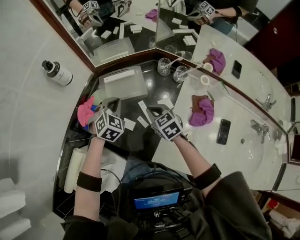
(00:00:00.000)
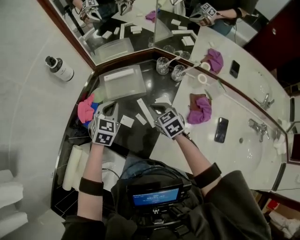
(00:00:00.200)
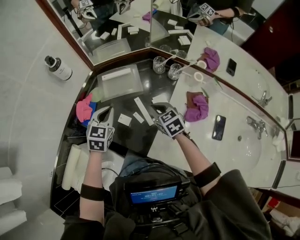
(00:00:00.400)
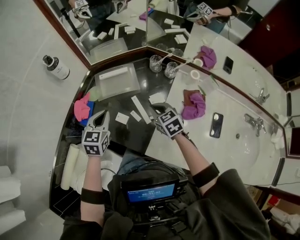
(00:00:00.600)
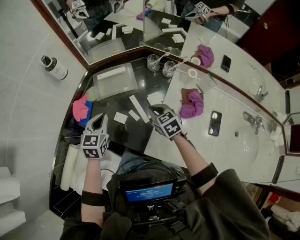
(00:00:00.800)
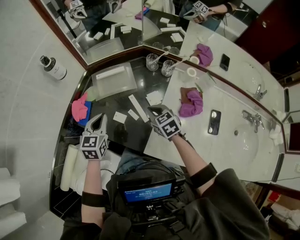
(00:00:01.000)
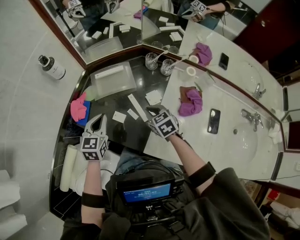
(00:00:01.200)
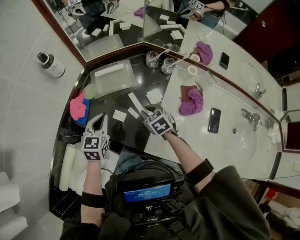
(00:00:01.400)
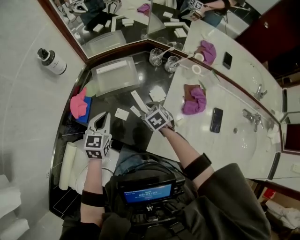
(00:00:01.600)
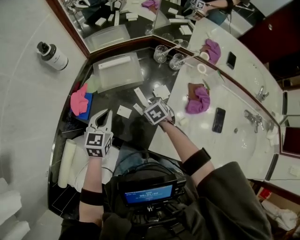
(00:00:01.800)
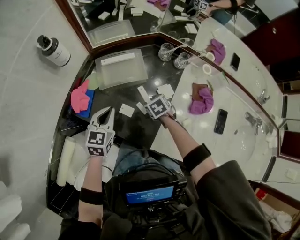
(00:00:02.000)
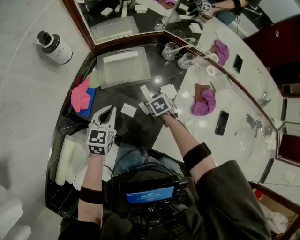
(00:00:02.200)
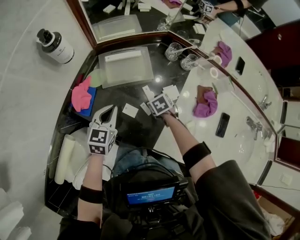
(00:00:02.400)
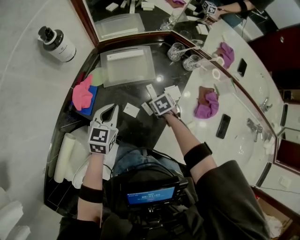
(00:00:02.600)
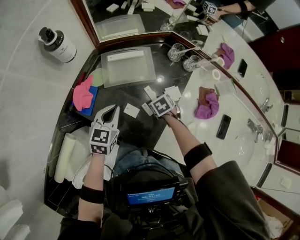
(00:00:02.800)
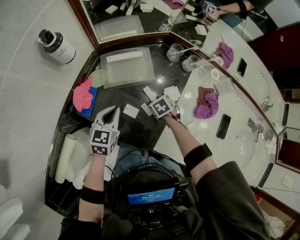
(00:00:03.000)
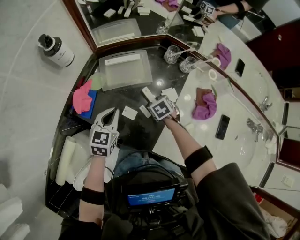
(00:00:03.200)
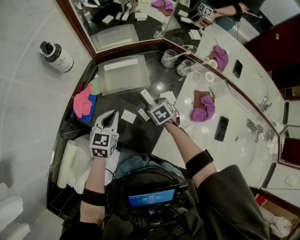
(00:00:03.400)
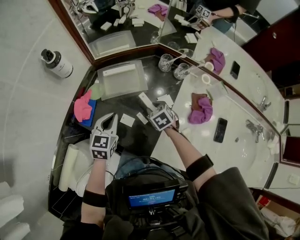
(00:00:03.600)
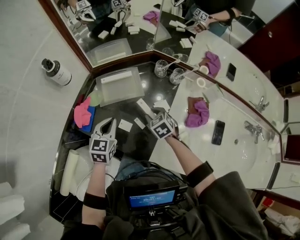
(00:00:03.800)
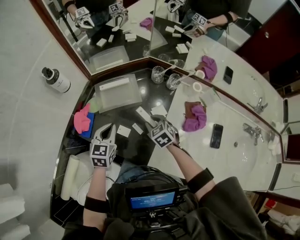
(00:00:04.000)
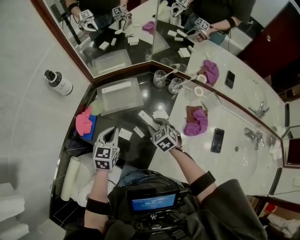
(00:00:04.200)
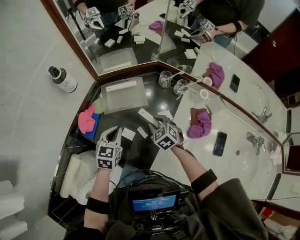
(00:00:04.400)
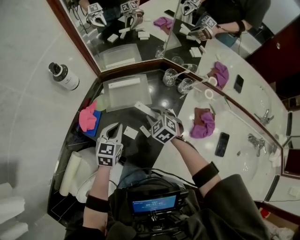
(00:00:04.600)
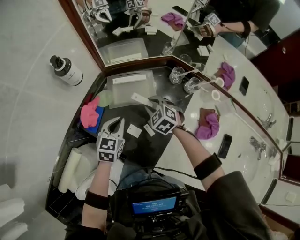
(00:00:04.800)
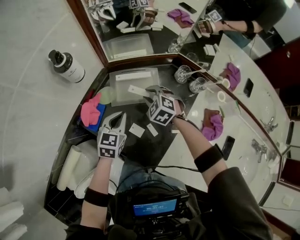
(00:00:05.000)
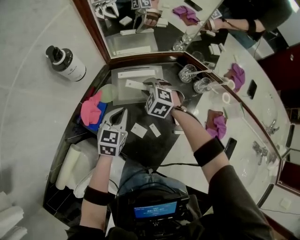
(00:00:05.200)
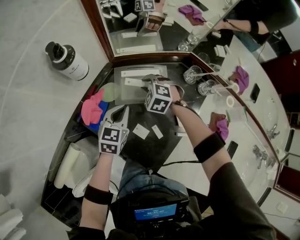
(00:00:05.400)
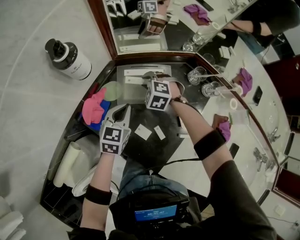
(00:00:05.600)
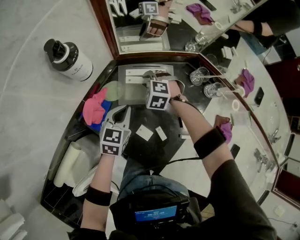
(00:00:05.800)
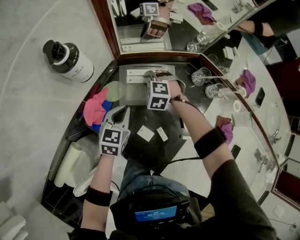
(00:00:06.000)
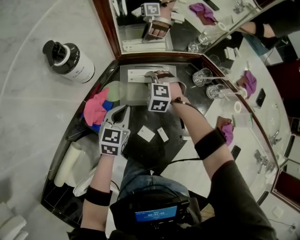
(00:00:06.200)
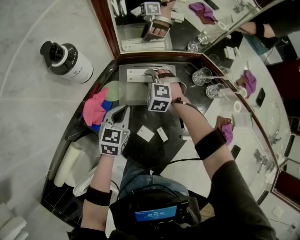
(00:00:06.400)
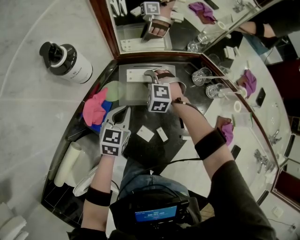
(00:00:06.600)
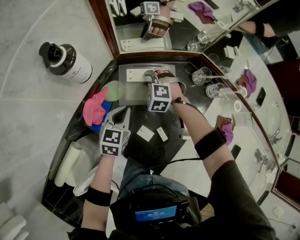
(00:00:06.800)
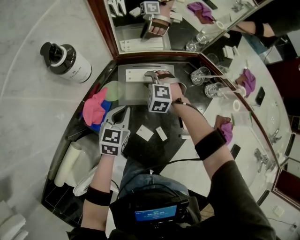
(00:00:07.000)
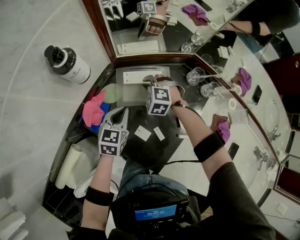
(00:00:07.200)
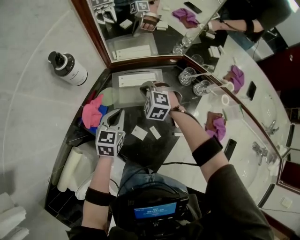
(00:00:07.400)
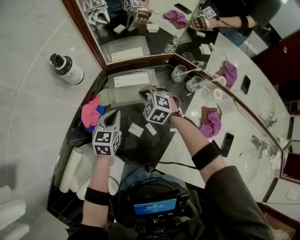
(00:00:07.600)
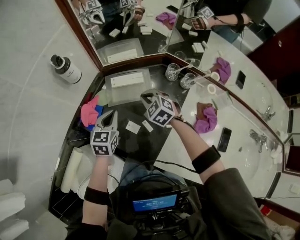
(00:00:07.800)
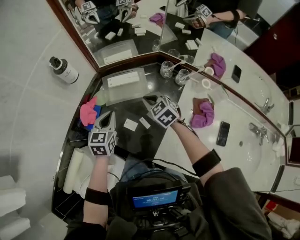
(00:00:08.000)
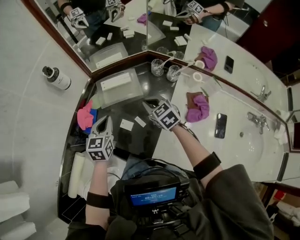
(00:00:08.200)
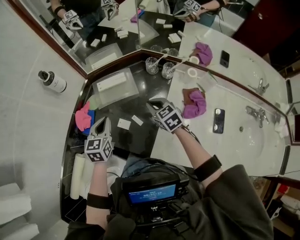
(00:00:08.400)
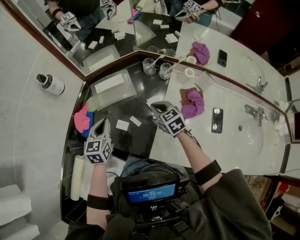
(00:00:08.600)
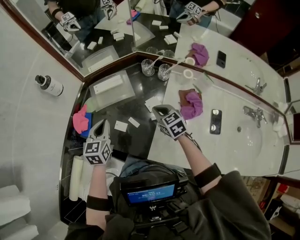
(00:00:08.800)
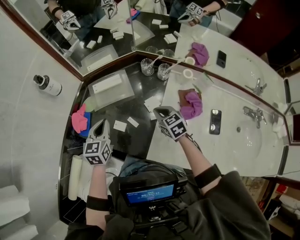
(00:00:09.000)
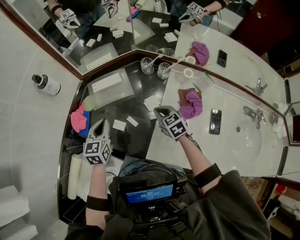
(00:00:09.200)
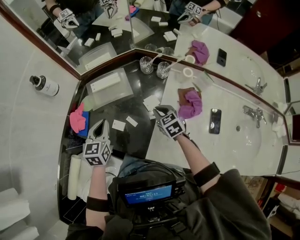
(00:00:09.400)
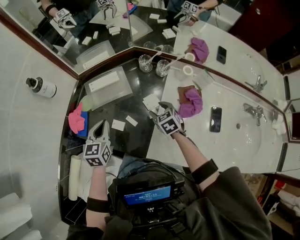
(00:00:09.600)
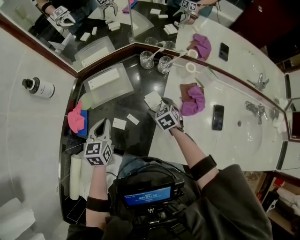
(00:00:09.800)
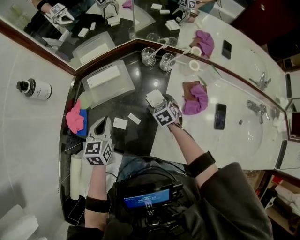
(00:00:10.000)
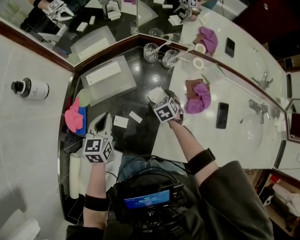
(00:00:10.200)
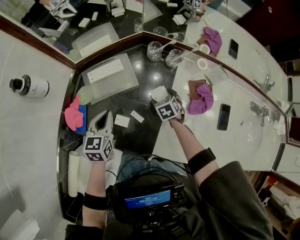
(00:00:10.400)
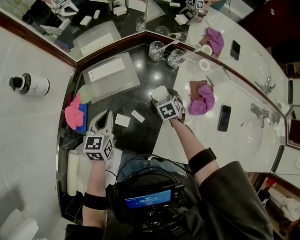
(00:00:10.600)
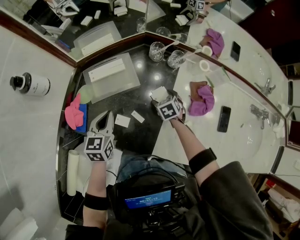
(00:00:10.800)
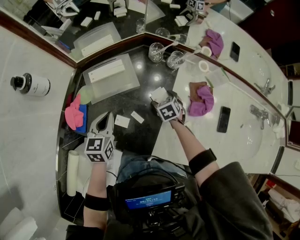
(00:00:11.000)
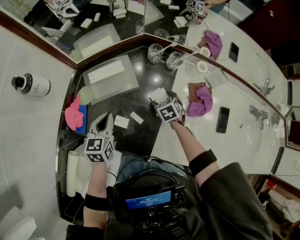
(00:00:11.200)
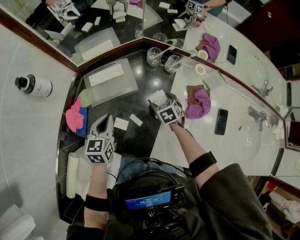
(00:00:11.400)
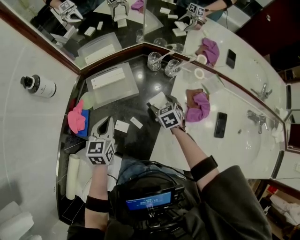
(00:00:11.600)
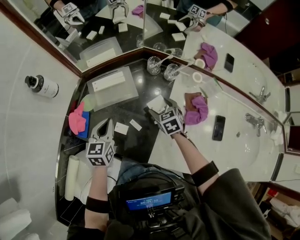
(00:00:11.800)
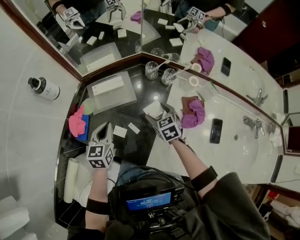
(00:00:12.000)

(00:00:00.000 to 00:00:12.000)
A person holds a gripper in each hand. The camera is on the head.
00:00:00.000 - 00:00:01.600: The right gripper heads downward, covering roughly 10 cm, and opens. Meanwhile the left gripper heads backward and to the left, covering roughly 10 cm, and rotates about 40 degrees.
00:00:01.600 - 00:00:03.000: The left gripper ends up approximately 5 cm from where it was; the right gripper travels downward by about 10 cm.
00:00:03.000 - 00:00:04.400: The right gripper moves upward, roughly 10 cm, and swivels about 30 degrees.
00:00:04.400 - 00:00:06.000: The left gripper moves forward, downward and to the left, approximately 15 cm. The right gripper moves forward and to the left, about 25 cm, and rotates around the line of its fingers by roughly 50 degrees, counterclockwise from behind.
00:00:06.000 - 00:00:07.600: The right gripper goes roughly 15 cm upward and backward, and rotates roughly 20 degrees. The left gripper heads upward, covering some 5 cm.
00:00:07.600 - 00:00:09.000: The right gripper goes about 25 cm backward and to the right, and rolls clockwise, seen from behind, by about 50 degrees. The left gripper travels backward and upward by approximately 10 cm.
00:00:09.000 - 00:00:10.400: The left gripper shifts approximately 5 cm downward. The right gripper is displaced downward and forward by roughly 15 cm, changes its angle by roughly 30 degrees, and opens up.
00:00:10.400 - 00:00:12.000: The right gripper travels upward by roughly 15 cm.

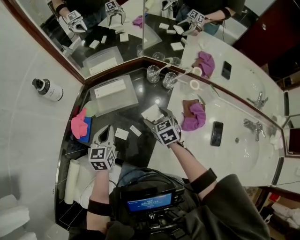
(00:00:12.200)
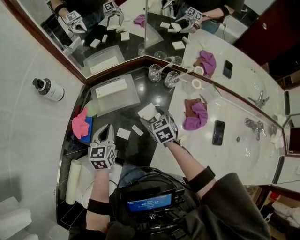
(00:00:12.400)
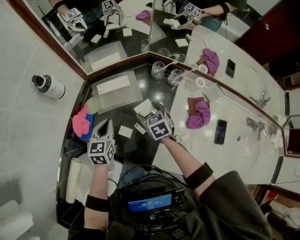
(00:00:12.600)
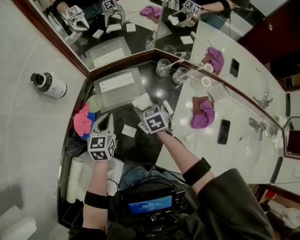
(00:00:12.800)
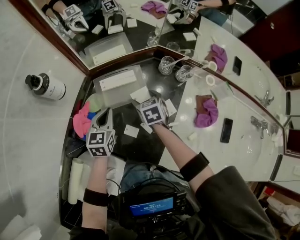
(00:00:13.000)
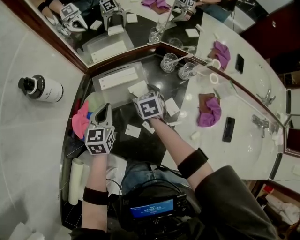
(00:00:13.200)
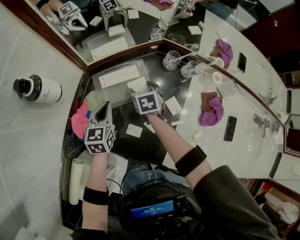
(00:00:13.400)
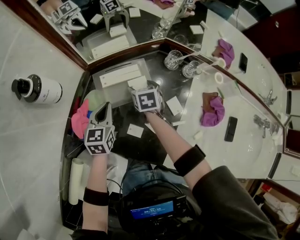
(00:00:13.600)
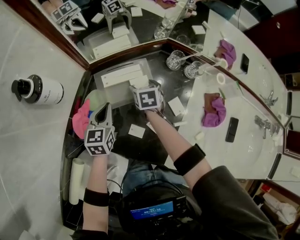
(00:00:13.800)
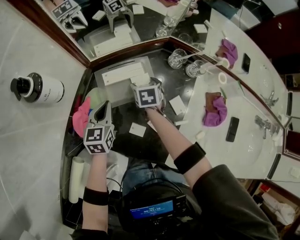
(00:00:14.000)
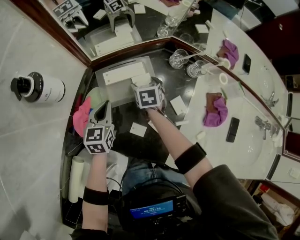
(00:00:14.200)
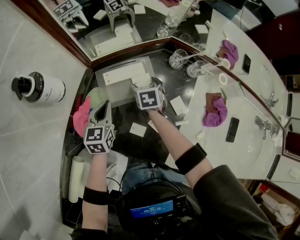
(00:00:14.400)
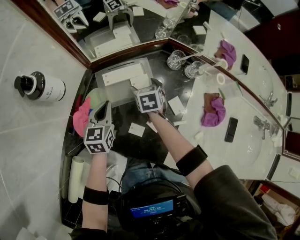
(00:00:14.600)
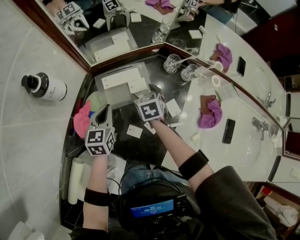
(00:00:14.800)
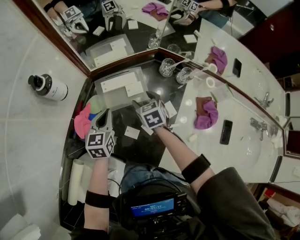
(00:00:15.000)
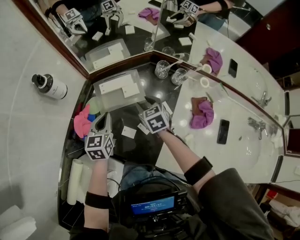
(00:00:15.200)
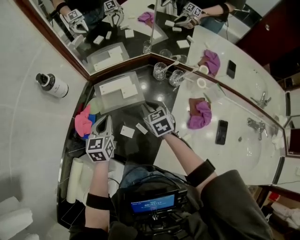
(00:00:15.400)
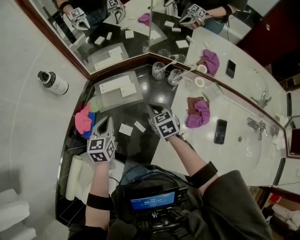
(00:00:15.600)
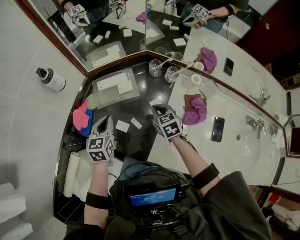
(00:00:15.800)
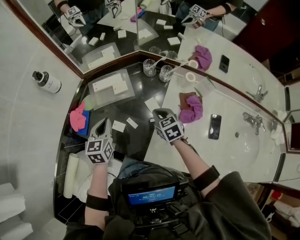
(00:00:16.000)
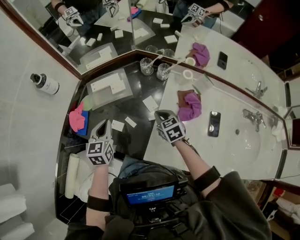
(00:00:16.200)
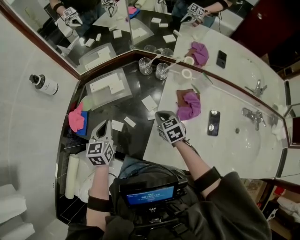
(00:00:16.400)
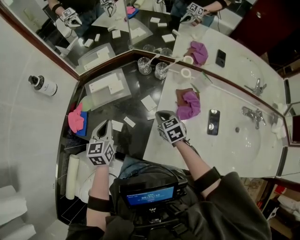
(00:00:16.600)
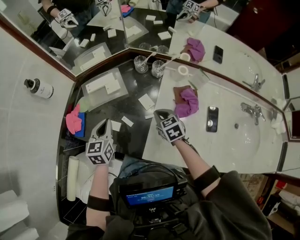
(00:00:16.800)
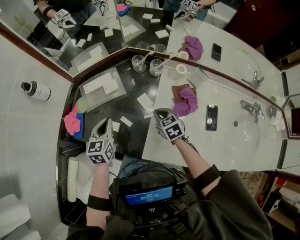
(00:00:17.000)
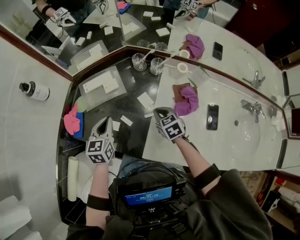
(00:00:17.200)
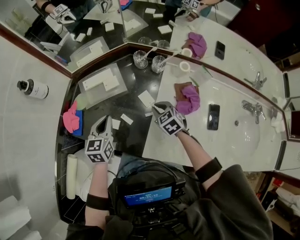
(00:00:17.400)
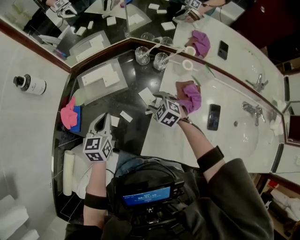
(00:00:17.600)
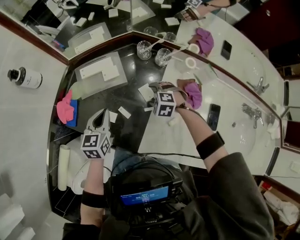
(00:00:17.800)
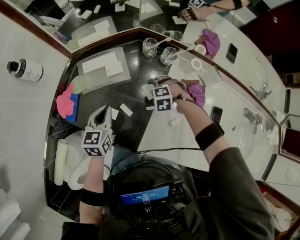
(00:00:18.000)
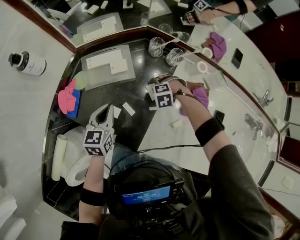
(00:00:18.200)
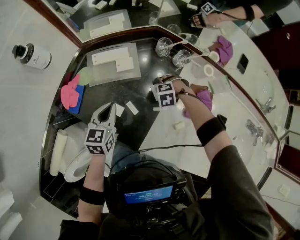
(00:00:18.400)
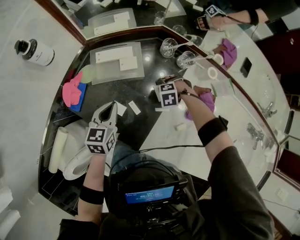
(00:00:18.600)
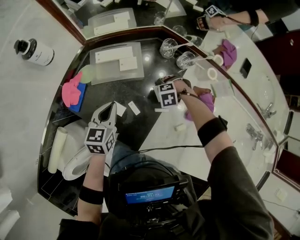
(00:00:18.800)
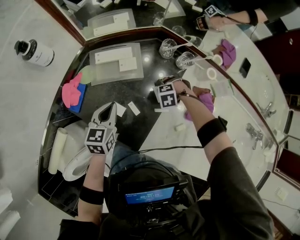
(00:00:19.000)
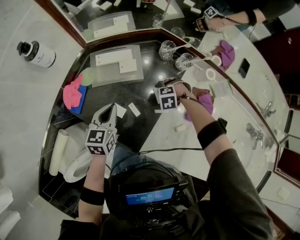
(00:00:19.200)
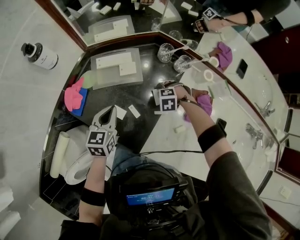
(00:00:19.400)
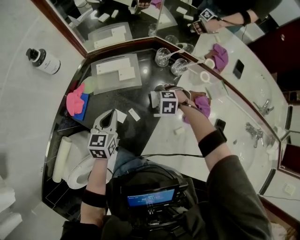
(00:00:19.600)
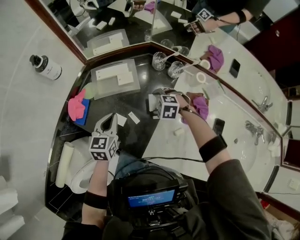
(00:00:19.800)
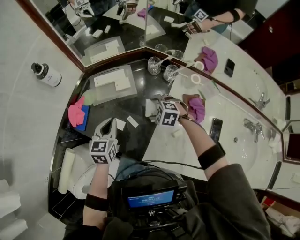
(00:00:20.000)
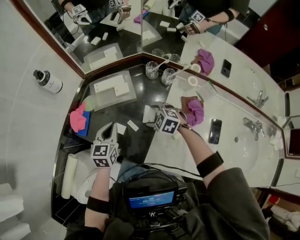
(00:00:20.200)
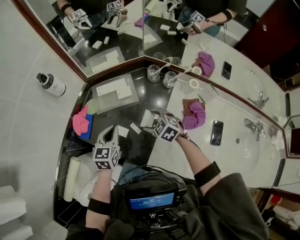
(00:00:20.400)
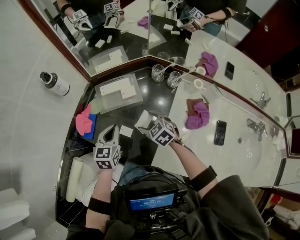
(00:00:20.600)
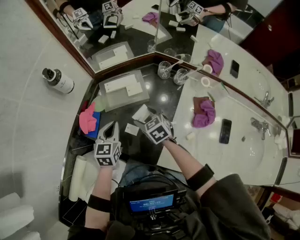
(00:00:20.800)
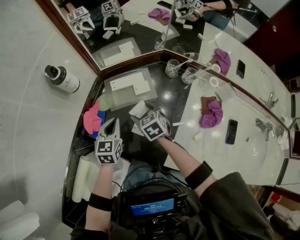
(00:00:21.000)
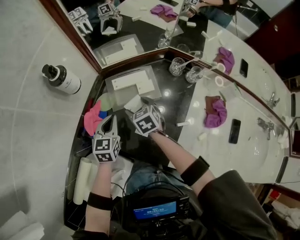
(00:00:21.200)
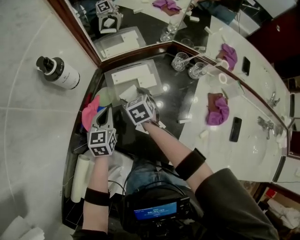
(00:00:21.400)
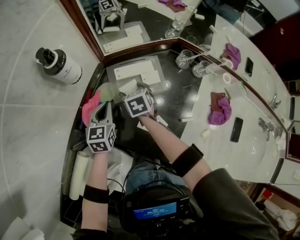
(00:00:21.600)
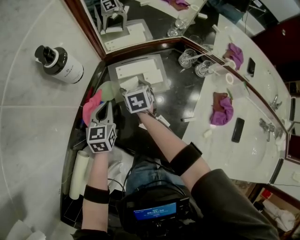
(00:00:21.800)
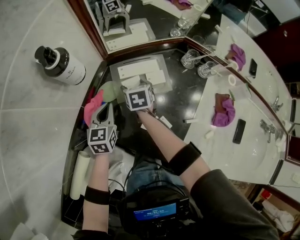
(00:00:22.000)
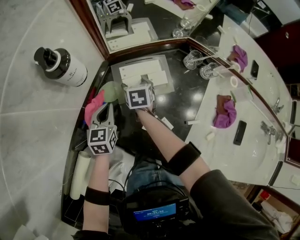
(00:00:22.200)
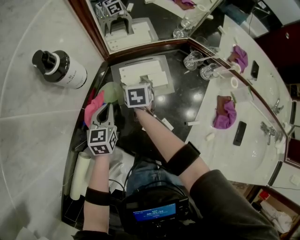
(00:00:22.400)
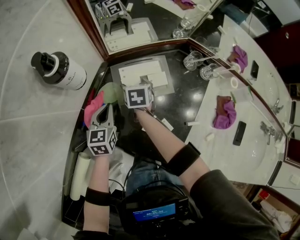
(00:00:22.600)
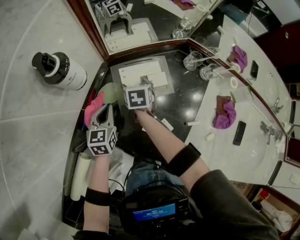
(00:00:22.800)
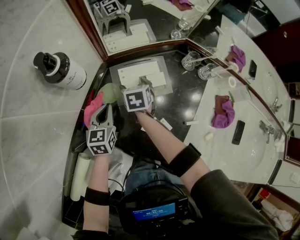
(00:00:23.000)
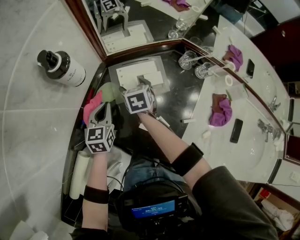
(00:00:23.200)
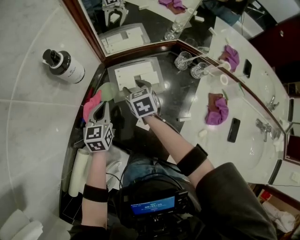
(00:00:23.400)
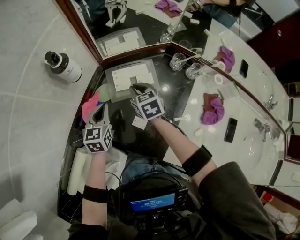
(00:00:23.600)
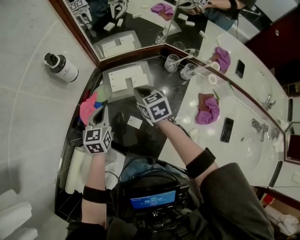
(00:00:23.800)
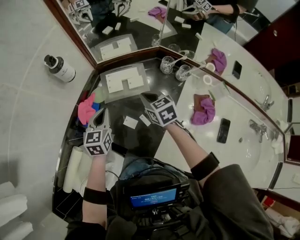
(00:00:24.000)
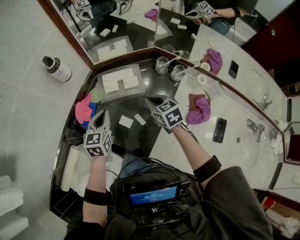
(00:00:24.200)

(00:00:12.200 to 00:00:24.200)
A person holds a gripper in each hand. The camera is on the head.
00:00:12.200 - 00:00:13.800: Both grippers move forward, to the left and downward, some 20 cm.
00:00:13.800 - 00:00:15.200: The left gripper shifts about 5 cm upward. Meanwhile the right gripper heads upward and backward, covering about 10 cm, and closes its fingers.
00:00:15.200 - 00:00:16.600: The right gripper travels backward and to the right by approximately 20 cm, and closes; the left gripper shifts some 10 cm backward and to the right.
00:00:16.600 - 00:00:18.200: The right gripper moves downward, approximately 15 cm, rotates around the line of its fingers by roughly 70 degrees, counterclockwise from behind, and opens.
00:00:18.200 - 00:00:19.800: The right gripper is displaced upward by roughly 5 cm.
00:00:19.800 - 00:00:21.200: The left gripper shifts roughly 15 cm to the left and forward. Meanwhile the right gripper goes approximately 25 cm to the left and forward, and rolls clockwise, seen from behind, by some 50 degrees.
00:00:21.200 - 00:00:22.600: The right gripper moves forward and downward, about 10 cm, and turns by approximately 20 degrees. Meanwhile the left gripper moves to the left, roughly 5 cm.
00:00:22.600 - 00:00:24.200: The right gripper goes some 25 cm to the right, backward and upward, rotates approximately 30 degrees, and closes up. Meanwhile the left gripper heads upward, to the right and backward, covering approximately 20 cm.
